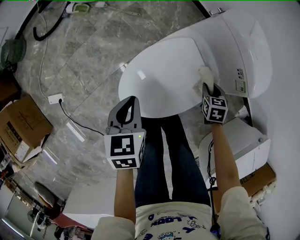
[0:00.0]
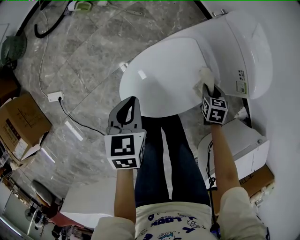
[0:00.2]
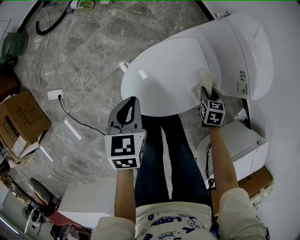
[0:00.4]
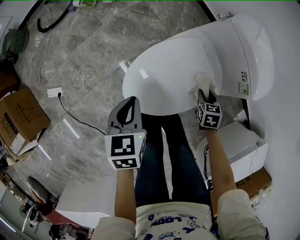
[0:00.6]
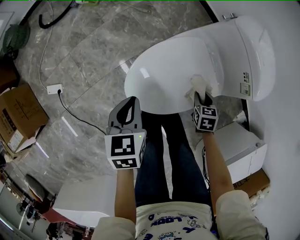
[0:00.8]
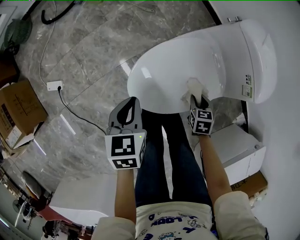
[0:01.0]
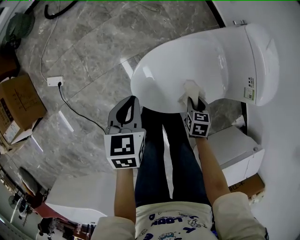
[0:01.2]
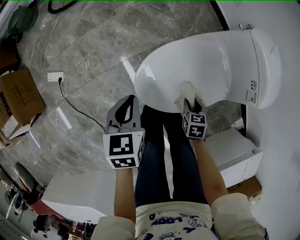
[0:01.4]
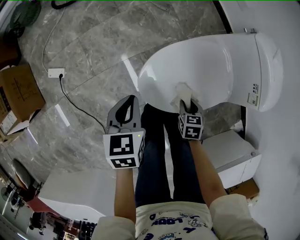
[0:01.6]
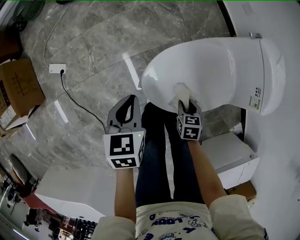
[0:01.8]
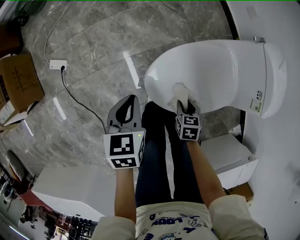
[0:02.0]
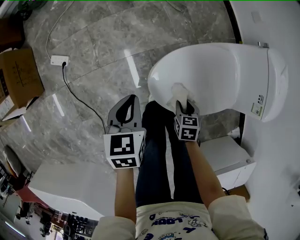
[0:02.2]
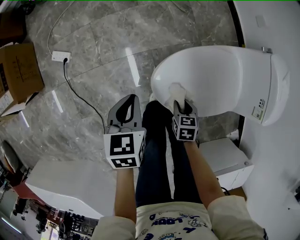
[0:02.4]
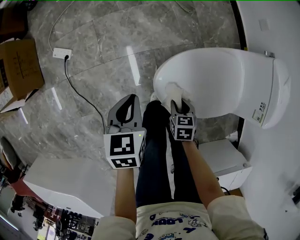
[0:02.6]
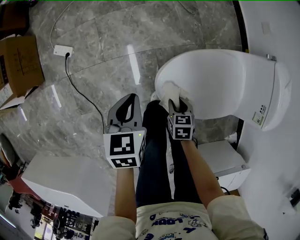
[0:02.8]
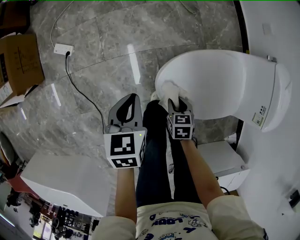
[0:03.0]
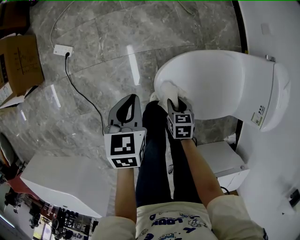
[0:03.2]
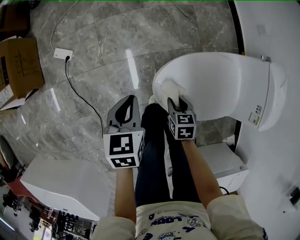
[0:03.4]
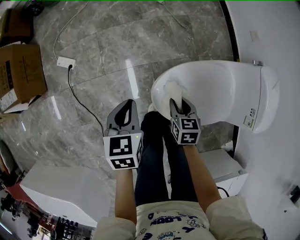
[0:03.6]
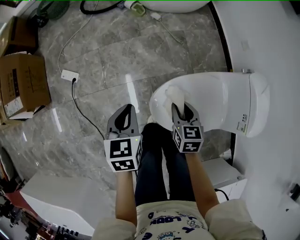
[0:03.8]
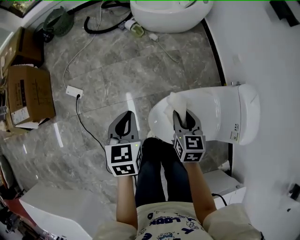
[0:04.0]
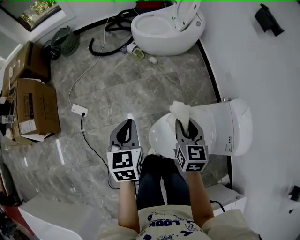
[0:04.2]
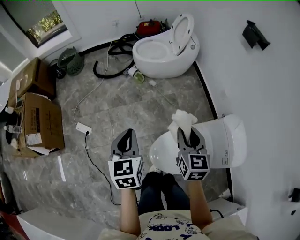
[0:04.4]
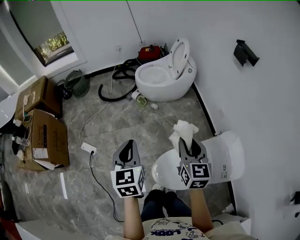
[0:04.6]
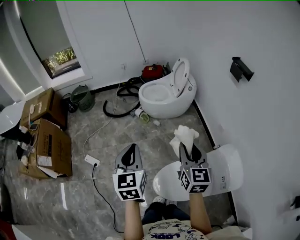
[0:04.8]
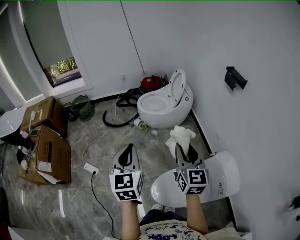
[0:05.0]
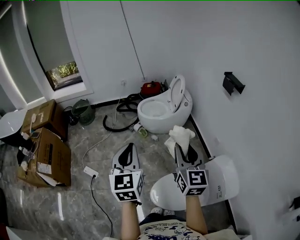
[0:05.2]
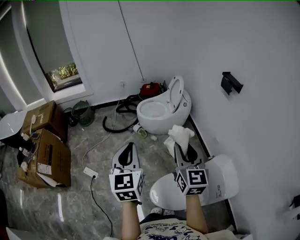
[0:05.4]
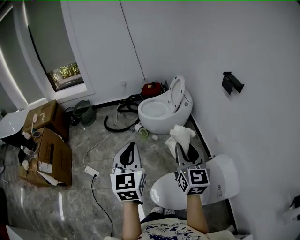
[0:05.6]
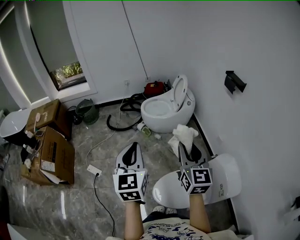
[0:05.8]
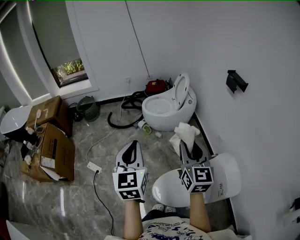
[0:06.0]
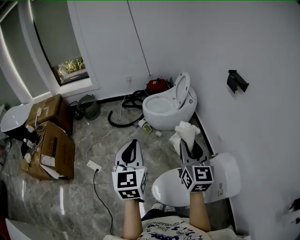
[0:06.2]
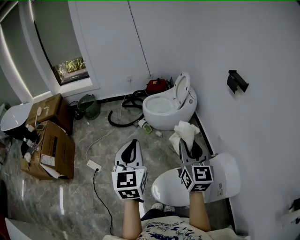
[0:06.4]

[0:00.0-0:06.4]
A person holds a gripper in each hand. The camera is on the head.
0:00.0 to 0:01.6: The right gripper moves to the left and backward, some 25 cm, while the left gripper moves to the left and backward, approximately 15 cm.
0:01.6 to 0:03.2: The left gripper travels to the left by some 10 cm. The right gripper goes roughly 15 cm to the left.
0:03.2 to 0:04.8: Both grippers travel together upward, roughly 60 cm. The right gripper tips its fingers upward by about 50 degrees. The left gripper tips its fingers upward by some 40 degrees.
0:04.8 to 0:06.4: The left gripper heads upward and backward, covering approximately 10 cm; the right gripper goes approximately 10 cm upward.

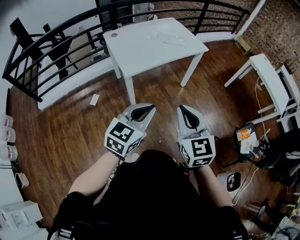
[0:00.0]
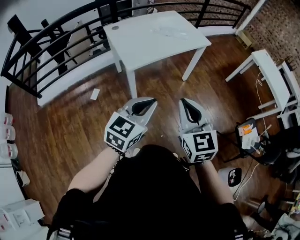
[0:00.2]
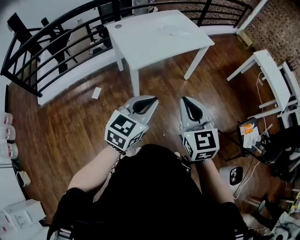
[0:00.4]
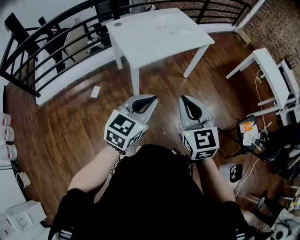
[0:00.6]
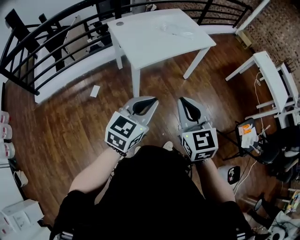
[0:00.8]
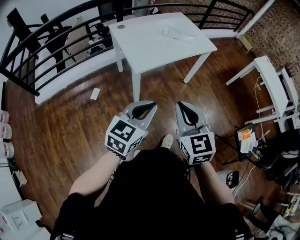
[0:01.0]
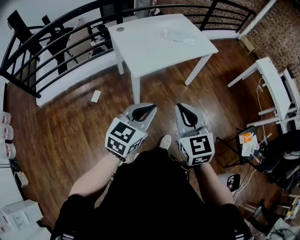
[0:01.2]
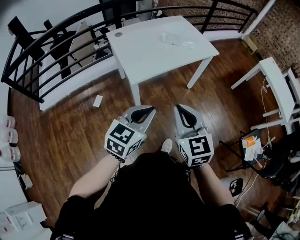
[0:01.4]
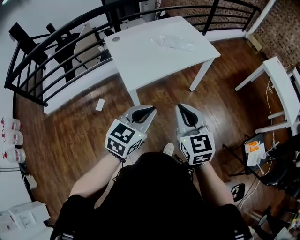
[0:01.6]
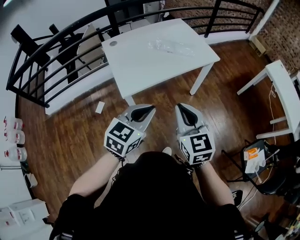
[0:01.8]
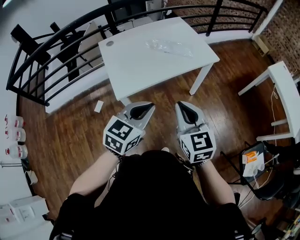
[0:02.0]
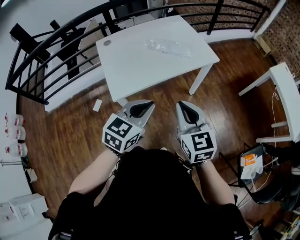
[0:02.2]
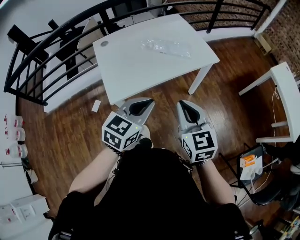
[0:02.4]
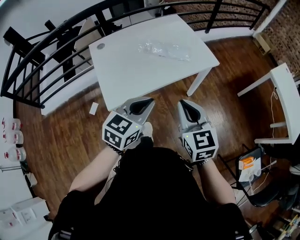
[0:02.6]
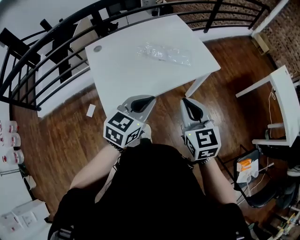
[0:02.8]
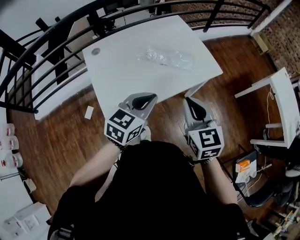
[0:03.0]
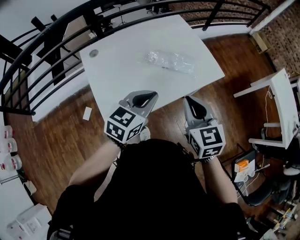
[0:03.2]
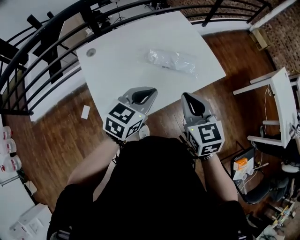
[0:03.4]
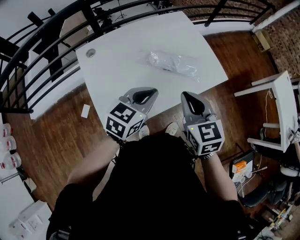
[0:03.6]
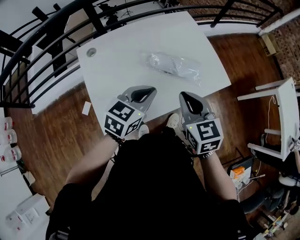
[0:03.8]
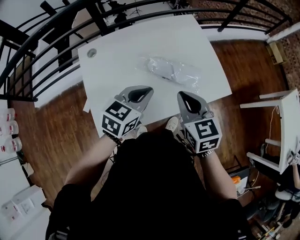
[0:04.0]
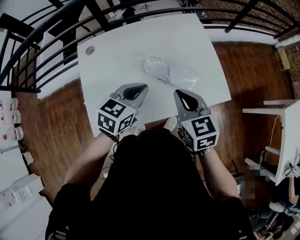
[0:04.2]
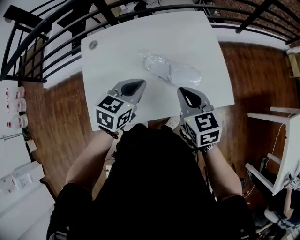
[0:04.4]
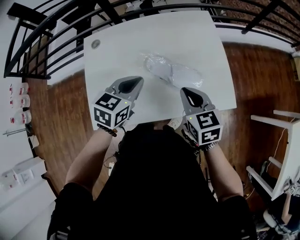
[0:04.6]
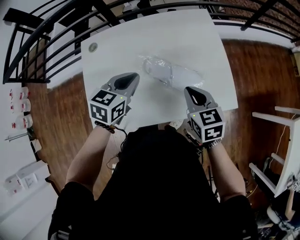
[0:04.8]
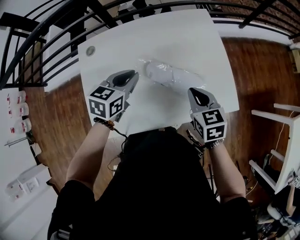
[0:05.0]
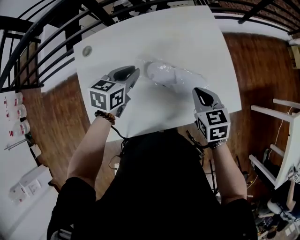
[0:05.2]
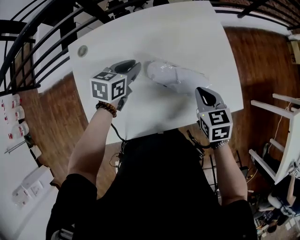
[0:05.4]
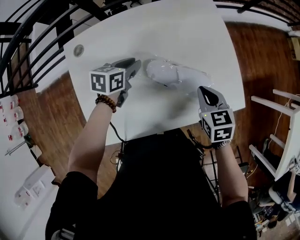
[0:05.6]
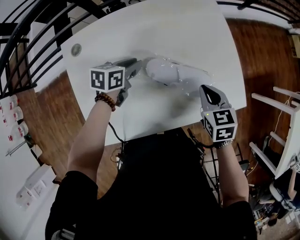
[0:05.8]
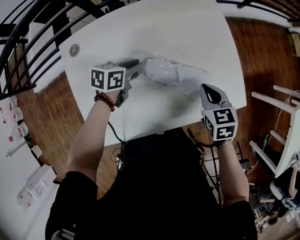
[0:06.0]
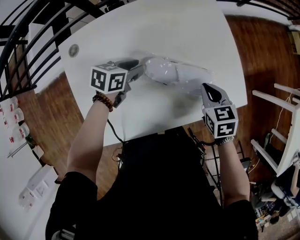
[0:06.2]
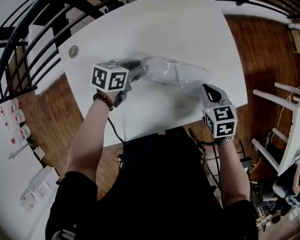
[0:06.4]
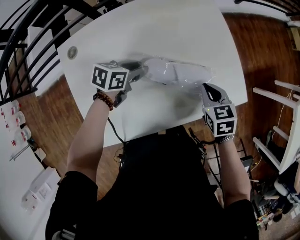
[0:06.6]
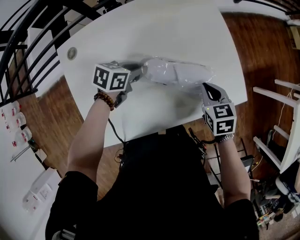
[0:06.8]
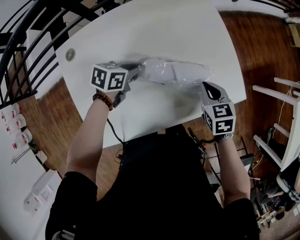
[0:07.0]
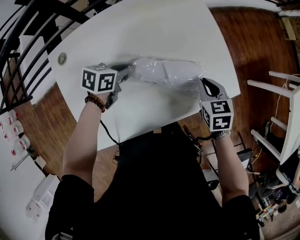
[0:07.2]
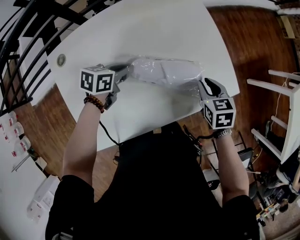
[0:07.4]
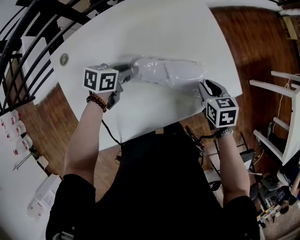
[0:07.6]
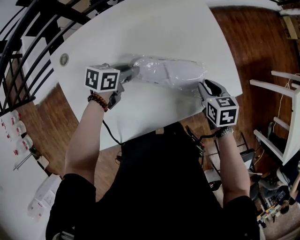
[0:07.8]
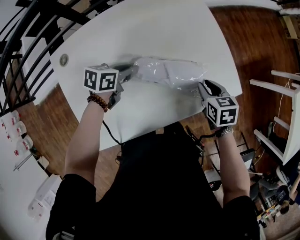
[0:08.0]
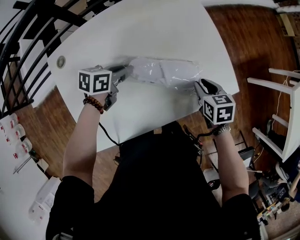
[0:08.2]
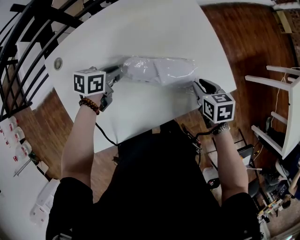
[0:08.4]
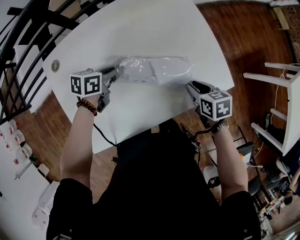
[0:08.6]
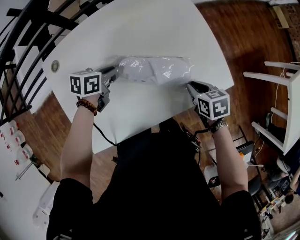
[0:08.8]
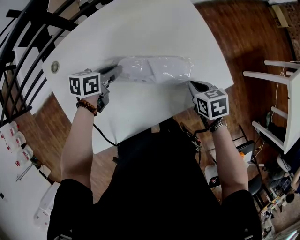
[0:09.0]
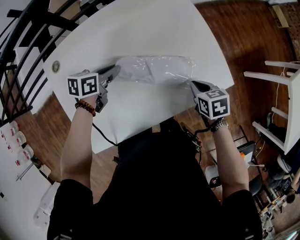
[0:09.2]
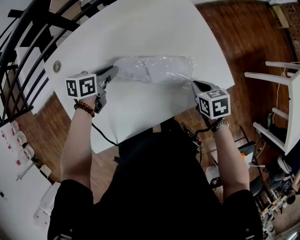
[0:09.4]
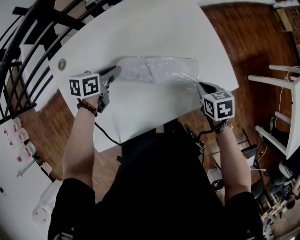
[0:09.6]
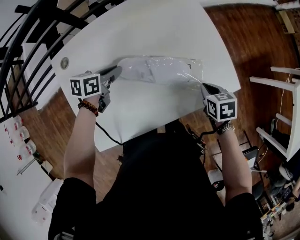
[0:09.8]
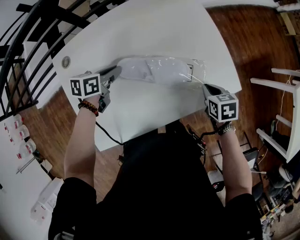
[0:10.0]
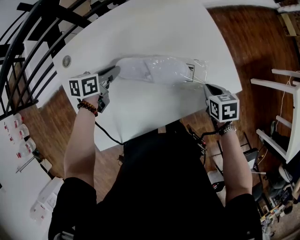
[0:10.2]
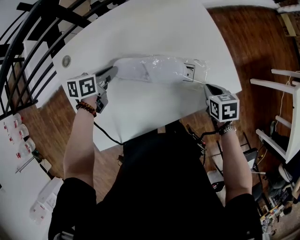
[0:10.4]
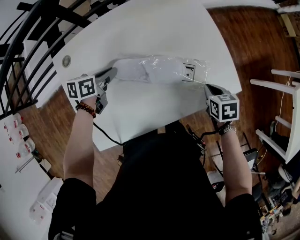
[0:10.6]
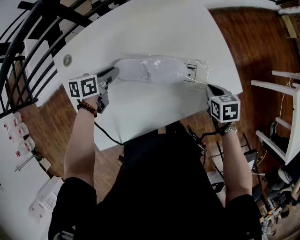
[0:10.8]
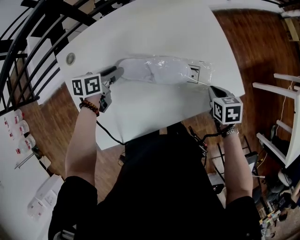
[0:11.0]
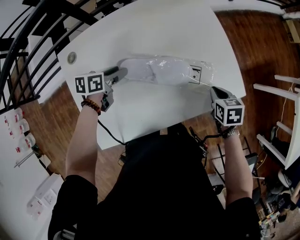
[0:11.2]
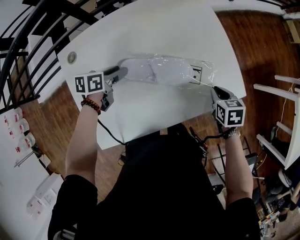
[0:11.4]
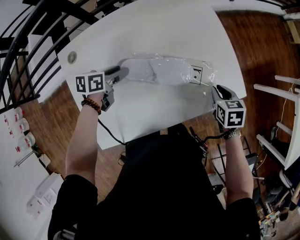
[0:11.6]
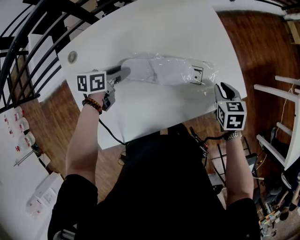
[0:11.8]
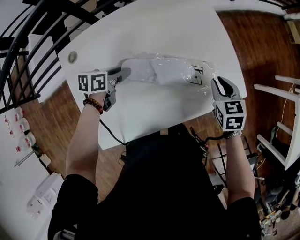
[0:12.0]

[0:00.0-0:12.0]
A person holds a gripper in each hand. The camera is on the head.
0:00.0 to 0:01.6: The grippers both shift forward by about 15 cm.
0:01.6 to 0:03.0: The grippers both shift forward by some 30 cm.
0:03.0 to 0:04.4: Both grippers travel together forward, about 20 cm. The left gripper swivels about 20 degrees. The right gripper swivels roughly 30 degrees.
0:04.4 to 0:06.0: The right gripper goes some 15 cm downward and forward, and turns by about 20 degrees; the left gripper shifts roughly 25 cm downward, forward and to the left, rotates about 30 degrees, and opens.
0:06.0 to 0:07.6: The right gripper travels to the right by approximately 5 cm, and opens its fingers.
0:07.6 to 0:09.0: The right gripper closes up.
0:09.0 to 0:10.4: The left gripper goes approximately 5 cm to the left.
0:10.4 to 0:12.0: The right gripper moves upward, some 5 cm, while the left gripper opens its fingers.

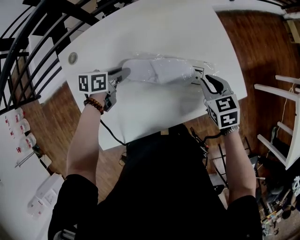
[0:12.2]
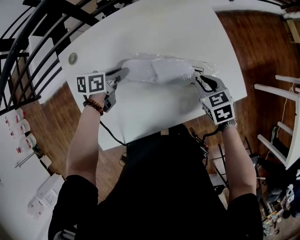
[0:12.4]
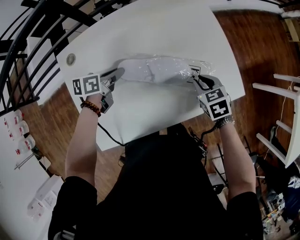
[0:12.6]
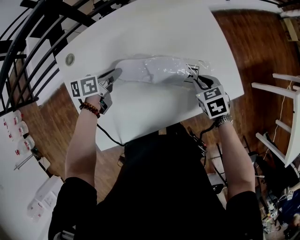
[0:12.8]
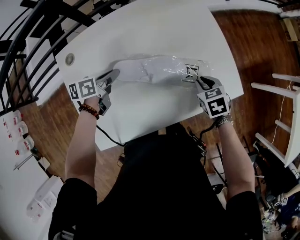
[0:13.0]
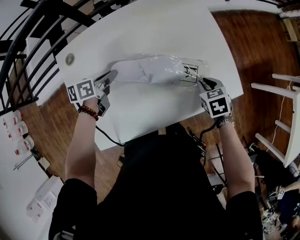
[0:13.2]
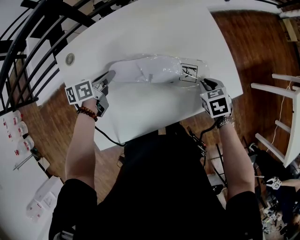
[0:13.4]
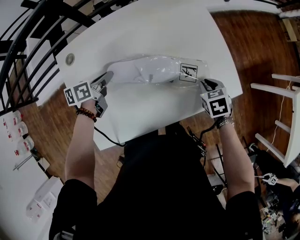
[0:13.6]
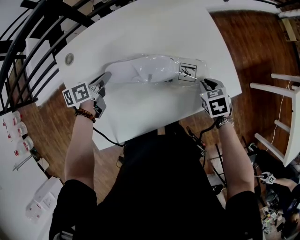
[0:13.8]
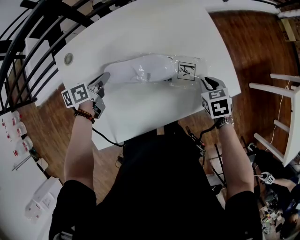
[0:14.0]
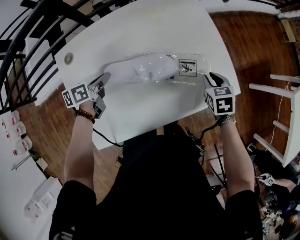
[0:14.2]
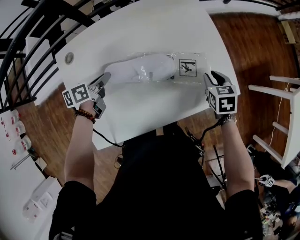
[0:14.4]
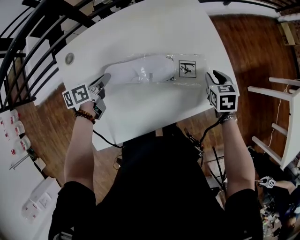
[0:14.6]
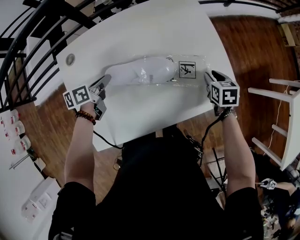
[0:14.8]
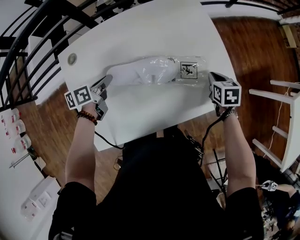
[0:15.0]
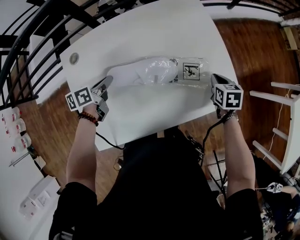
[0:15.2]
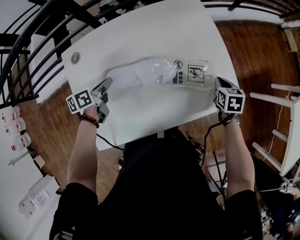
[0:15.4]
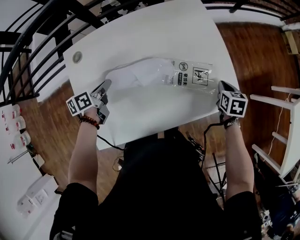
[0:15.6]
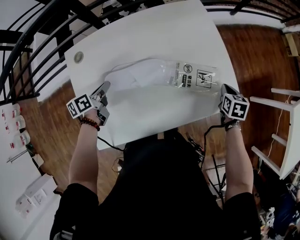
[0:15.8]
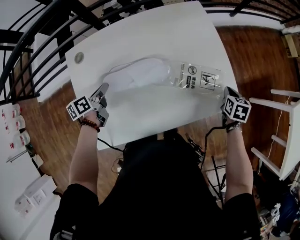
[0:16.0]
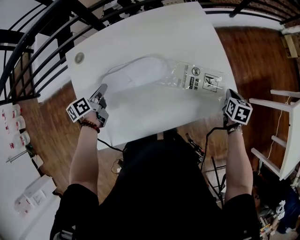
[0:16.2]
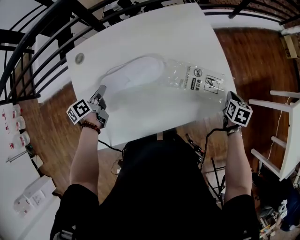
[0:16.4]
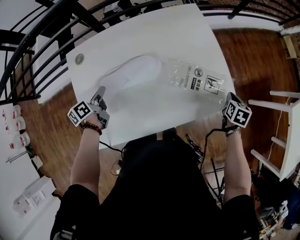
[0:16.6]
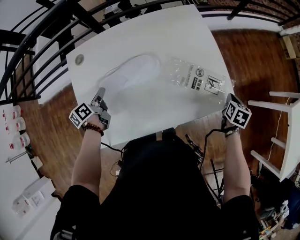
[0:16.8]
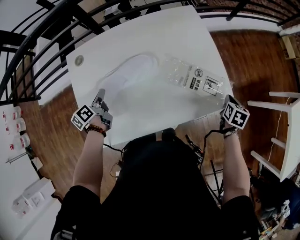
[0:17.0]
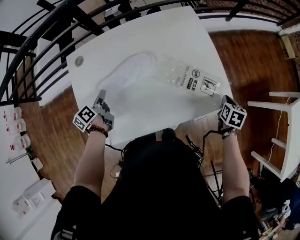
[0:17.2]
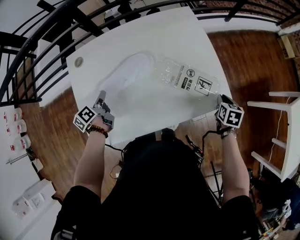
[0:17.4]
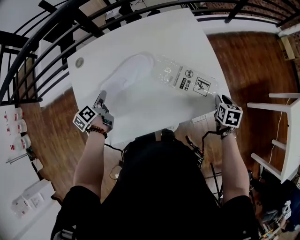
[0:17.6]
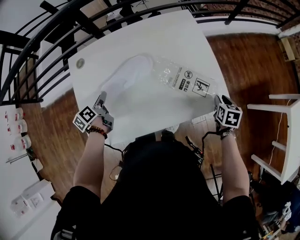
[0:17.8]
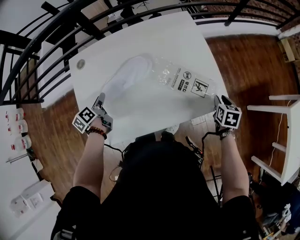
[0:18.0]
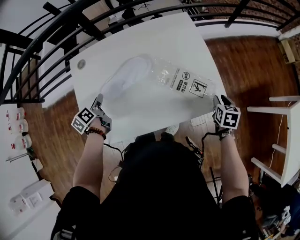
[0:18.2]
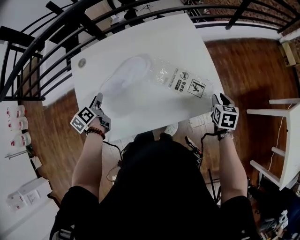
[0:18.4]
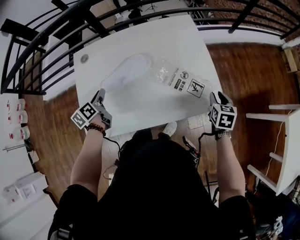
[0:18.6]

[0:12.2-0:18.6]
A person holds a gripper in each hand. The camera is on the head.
0:12.2 to 0:13.8: The right gripper heads downward, covering about 5 cm, while the left gripper goes approximately 5 cm to the left.
0:13.8 to 0:15.4: The right gripper heads forward and to the right, covering some 10 cm.
0:15.4 to 0:17.0: The left gripper travels backward by approximately 5 cm, and changes its angle by approximately 30 degrees, while the right gripper is displaced to the right by some 10 cm.
0:17.0 to 0:18.6: The right gripper ends up about 5 cm from where it was, turns by about 20 degrees, and opens up. The left gripper shifts by approximately 5 cm.
